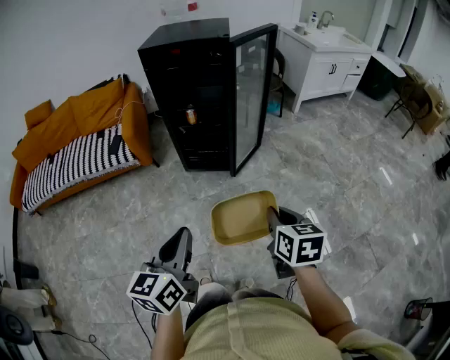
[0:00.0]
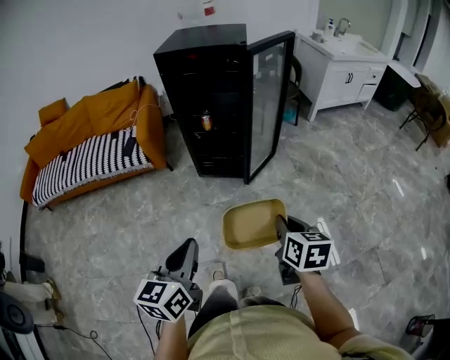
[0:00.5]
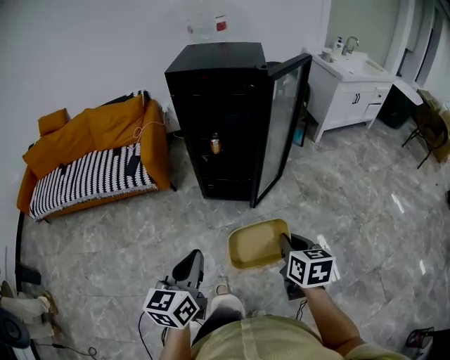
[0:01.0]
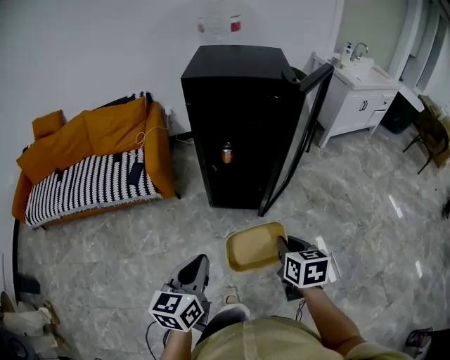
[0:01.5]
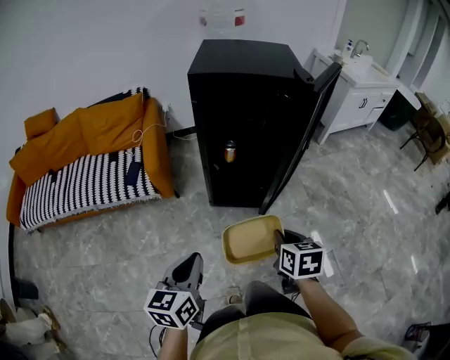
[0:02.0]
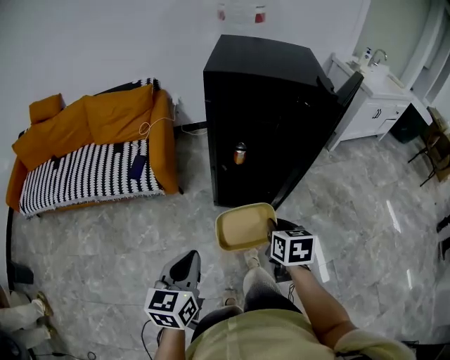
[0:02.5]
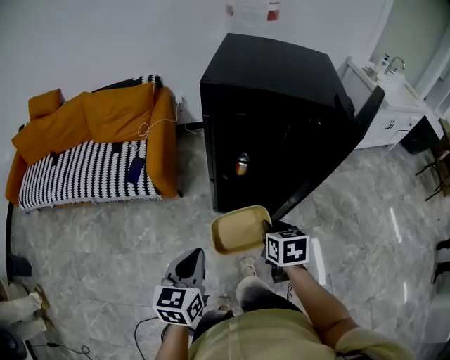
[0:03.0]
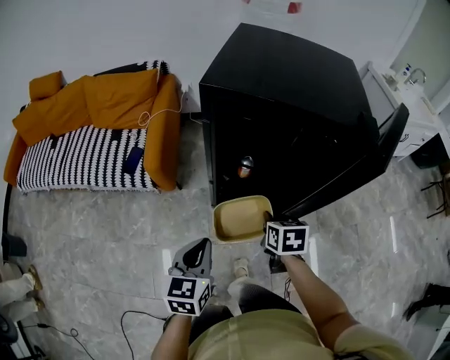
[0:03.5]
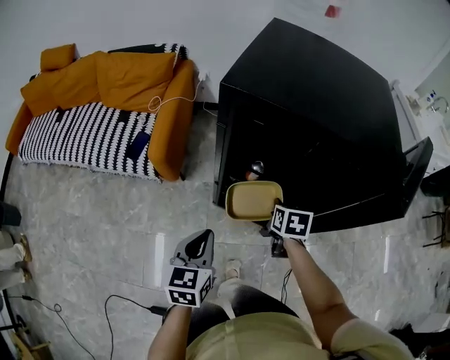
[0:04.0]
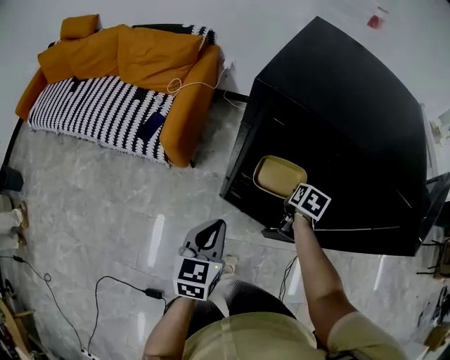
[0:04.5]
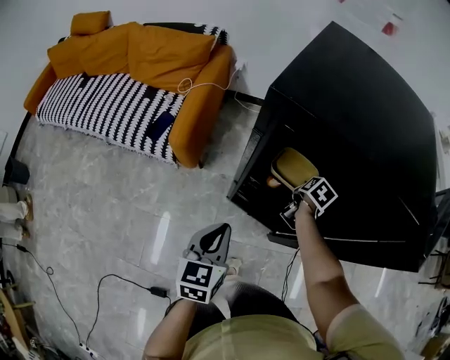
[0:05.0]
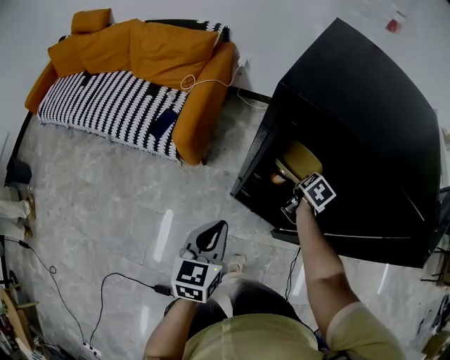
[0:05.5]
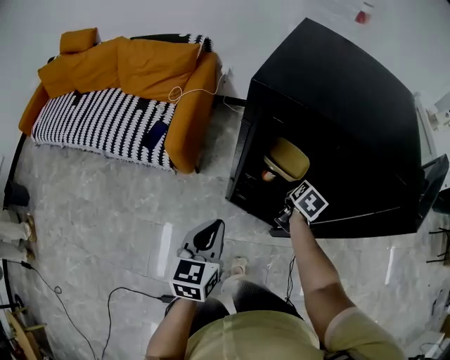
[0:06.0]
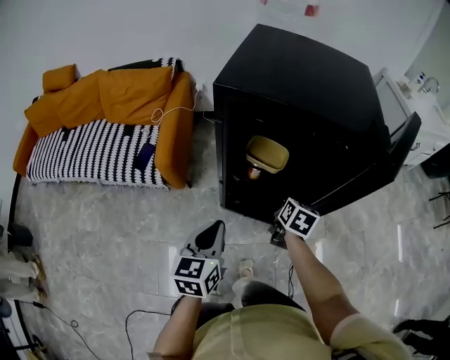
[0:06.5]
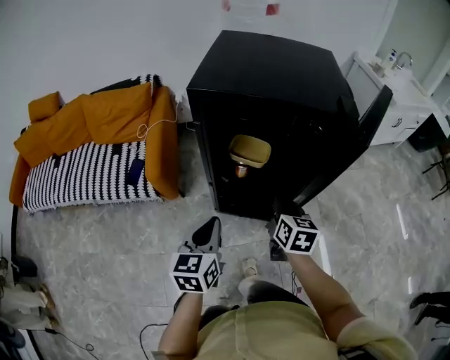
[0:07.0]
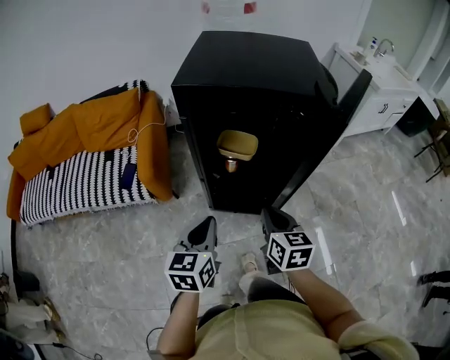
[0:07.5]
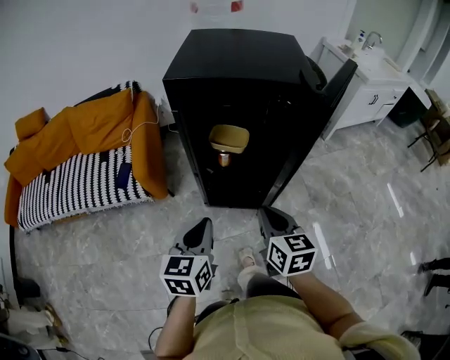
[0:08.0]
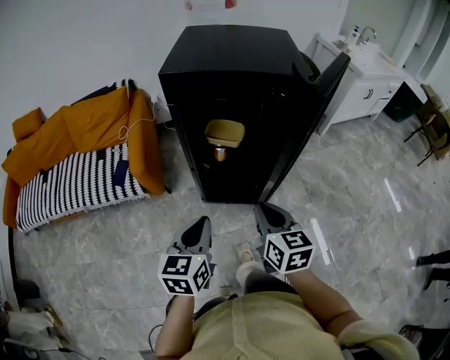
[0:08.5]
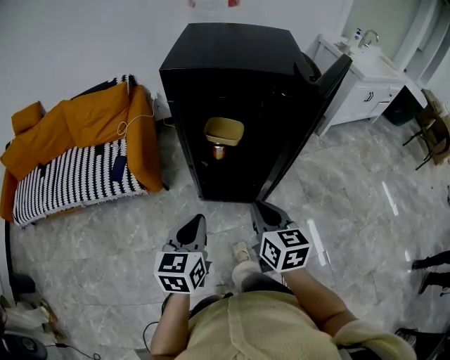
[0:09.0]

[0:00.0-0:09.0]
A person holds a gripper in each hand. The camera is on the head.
0:00.0 to 0:02.0: The two grippers go roughly 25 cm forward and to the left.
0:02.0 to 0:04.5: The right gripper travels forward by roughly 40 cm; the left gripper travels forward by approximately 30 cm.
0:04.5 to 0:07.0: The right gripper moves backward and upward, some 20 cm, and swivels roughly 30 degrees. The left gripper is displaced upward by about 5 cm.
0:07.0 to 0:09.0: The right gripper goes about 15 cm backward. The left gripper goes approximately 10 cm backward.

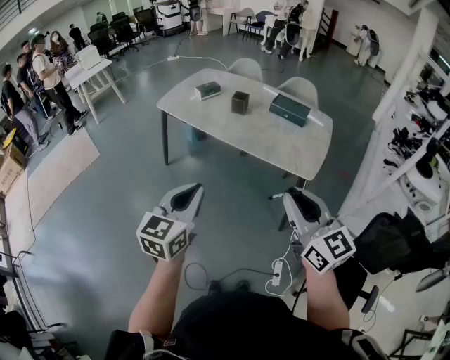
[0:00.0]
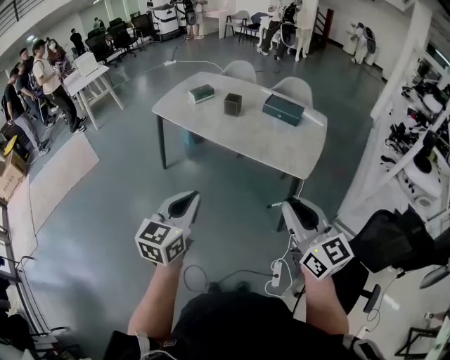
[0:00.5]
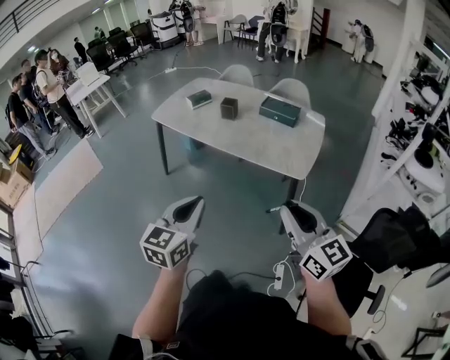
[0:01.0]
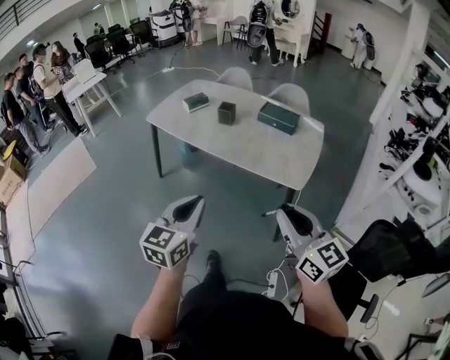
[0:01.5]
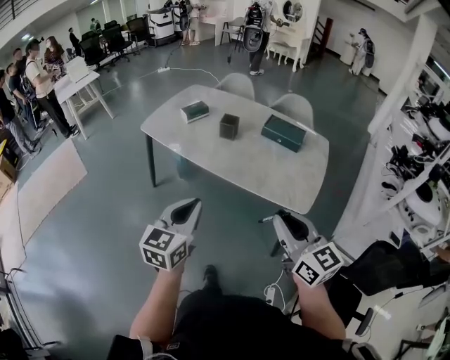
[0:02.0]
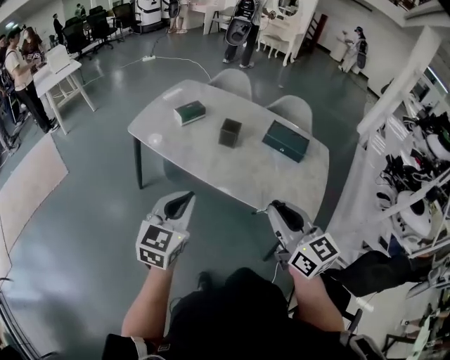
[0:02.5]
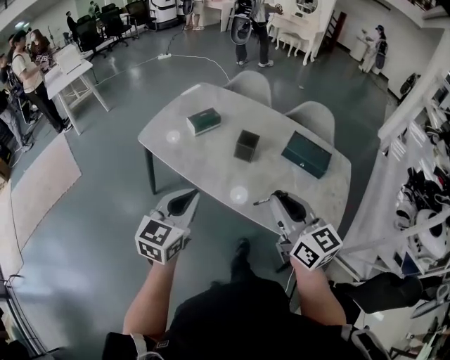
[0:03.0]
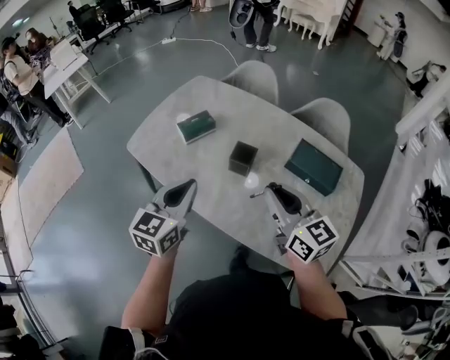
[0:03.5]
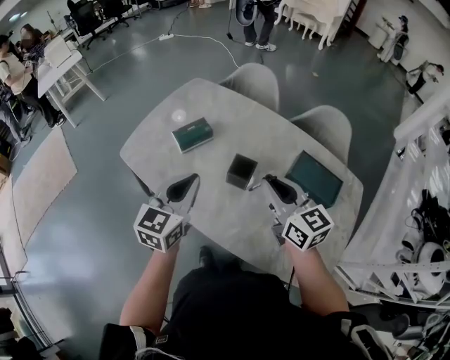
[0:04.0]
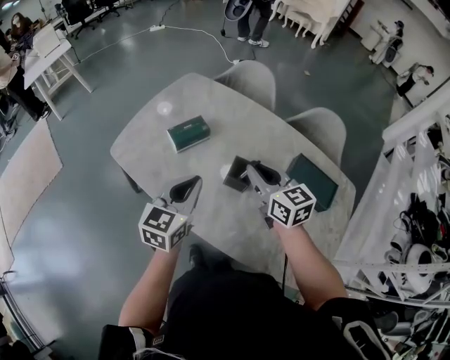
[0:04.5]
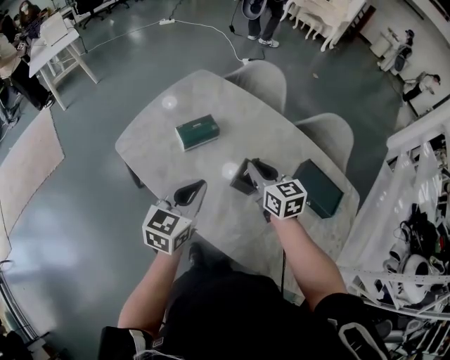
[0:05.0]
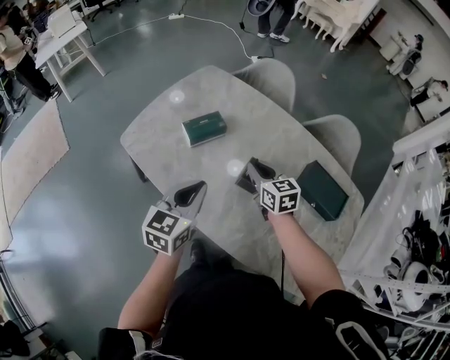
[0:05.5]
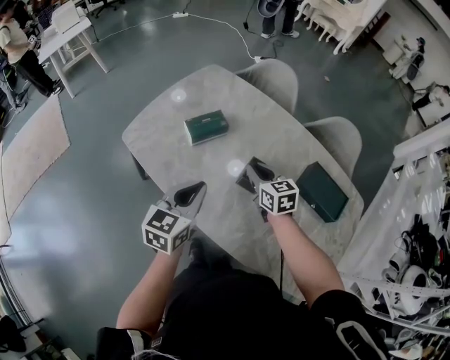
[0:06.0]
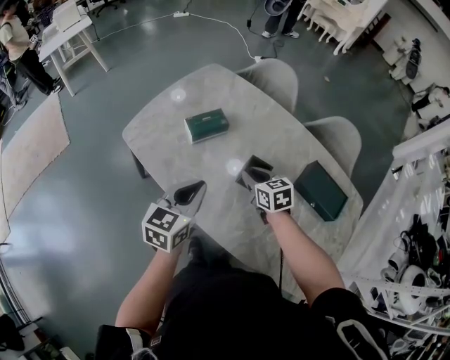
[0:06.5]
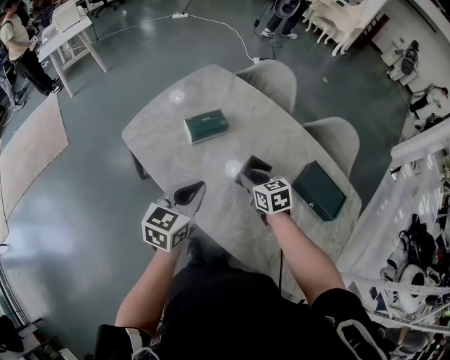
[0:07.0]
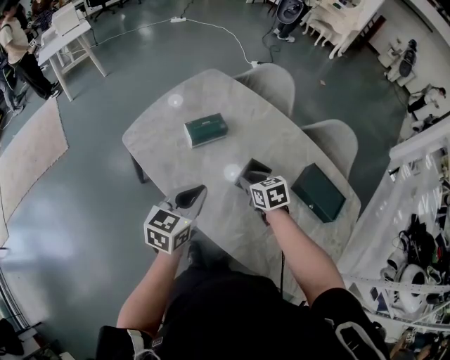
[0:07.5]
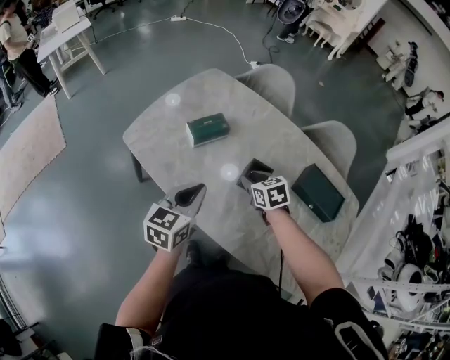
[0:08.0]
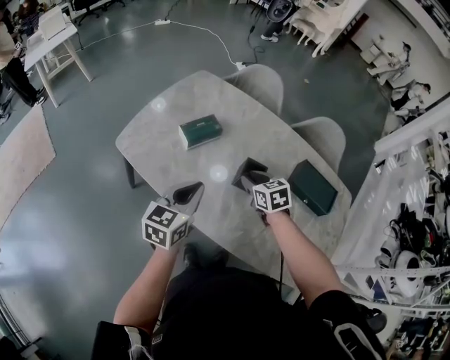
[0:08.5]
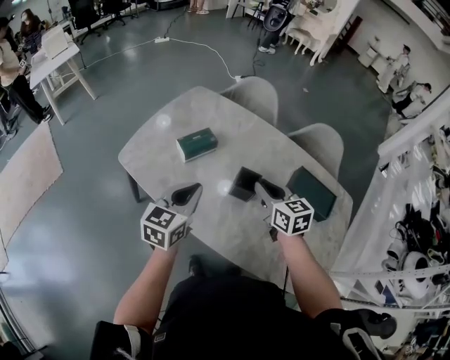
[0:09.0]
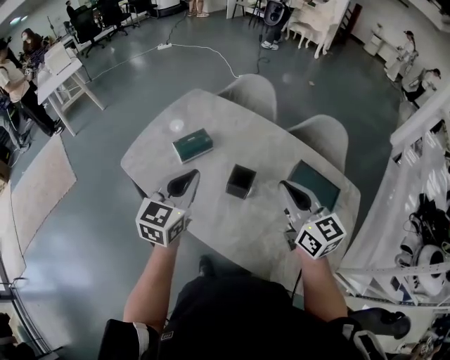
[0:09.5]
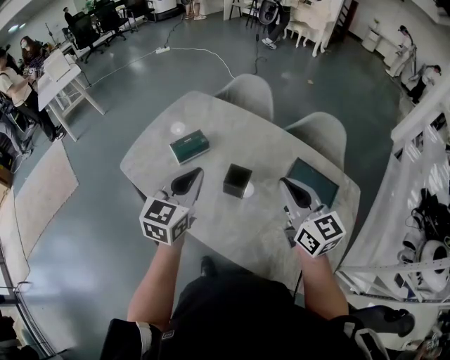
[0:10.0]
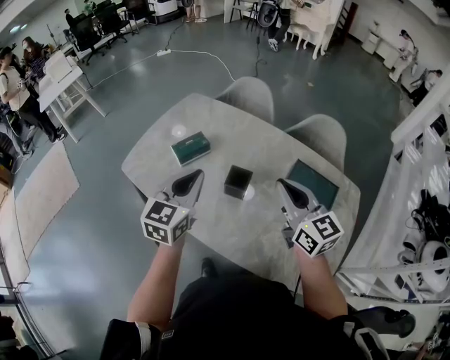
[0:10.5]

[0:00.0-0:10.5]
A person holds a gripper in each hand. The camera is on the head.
0:00.0 to 0:02.0: The grippers both shift forward by some 15 cm.
0:02.0 to 0:04.0: The two grippers travel together, forward, approximately 60 cm.
0:04.0 to 0:06.5: The left gripper goes about 10 cm downward, while the right gripper shifts some 25 cm downward, forward and to the left, and rotates some 30 degrees.
0:06.5 to 0:08.5: The grippers move only a little.
0:08.5 to 0:10.5: The right gripper heads upward, to the right and backward, covering about 30 cm, points its fingers approximately 40 degrees further upward, and closes its fingers. Meanwhile the left gripper shifts approximately 15 cm upward and to the right.

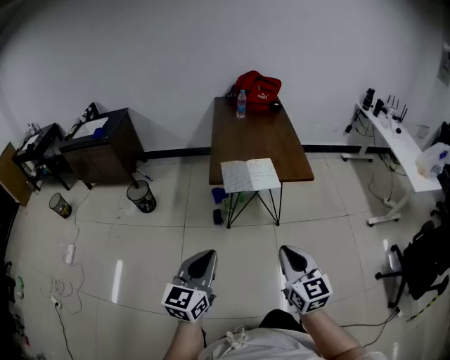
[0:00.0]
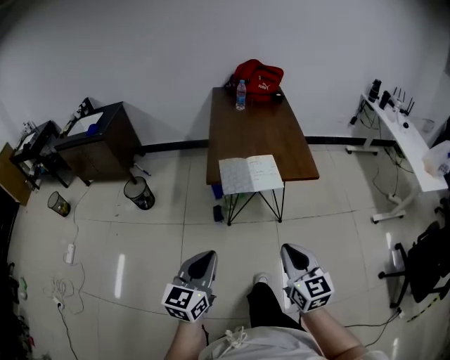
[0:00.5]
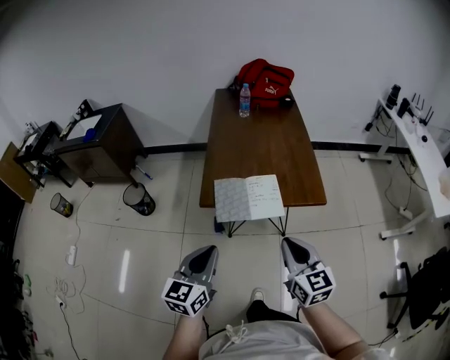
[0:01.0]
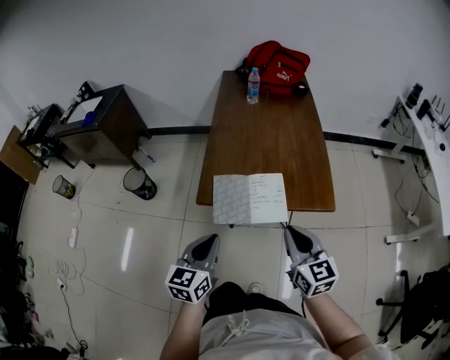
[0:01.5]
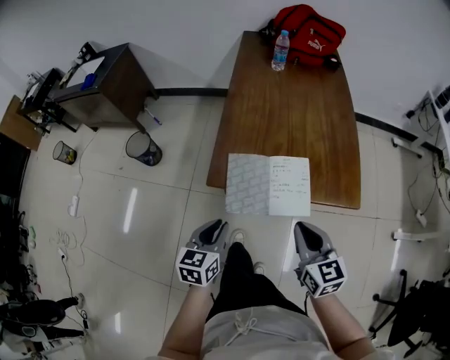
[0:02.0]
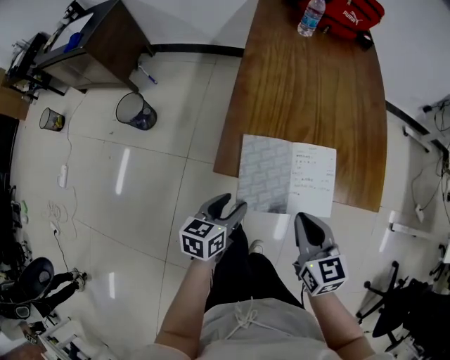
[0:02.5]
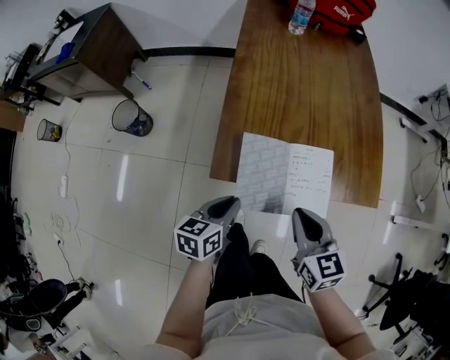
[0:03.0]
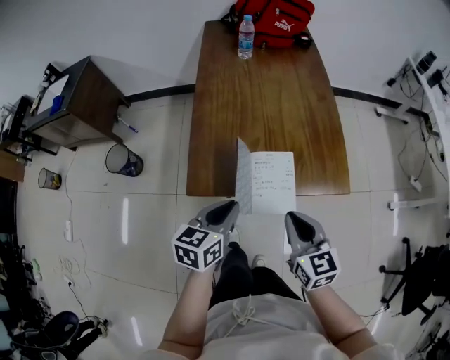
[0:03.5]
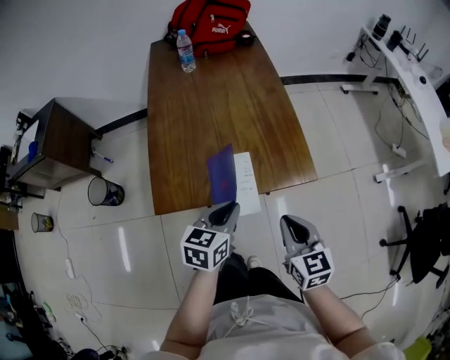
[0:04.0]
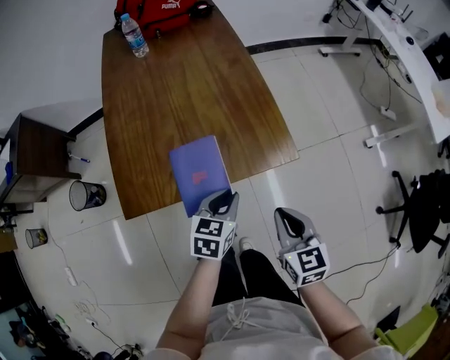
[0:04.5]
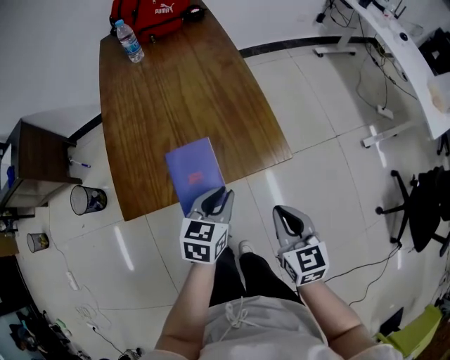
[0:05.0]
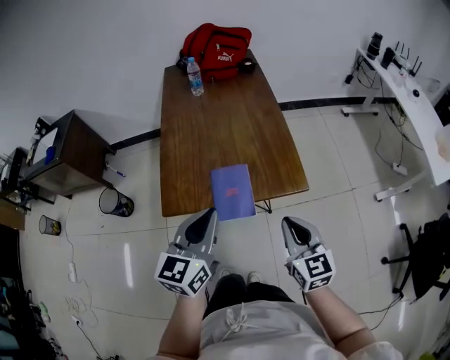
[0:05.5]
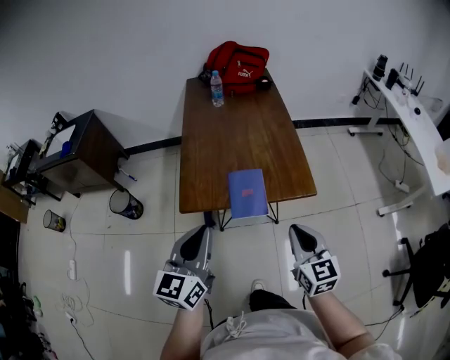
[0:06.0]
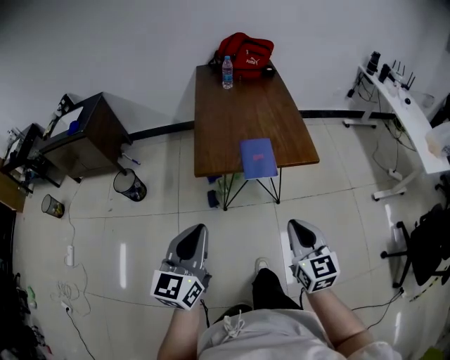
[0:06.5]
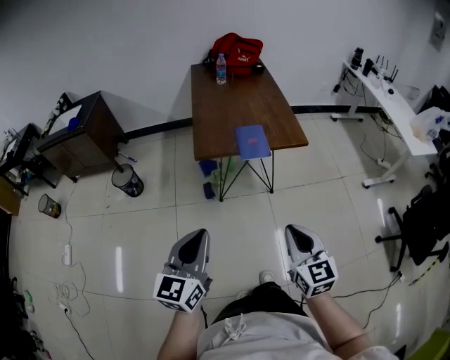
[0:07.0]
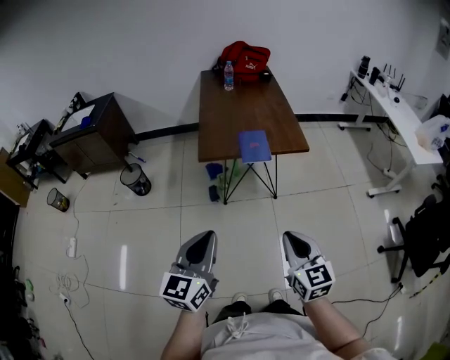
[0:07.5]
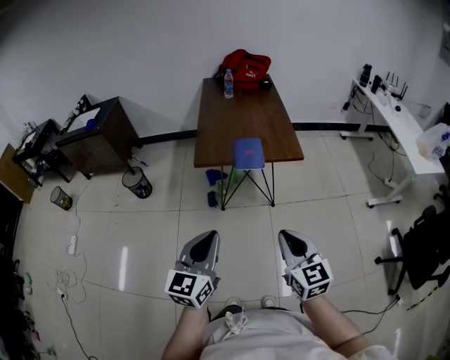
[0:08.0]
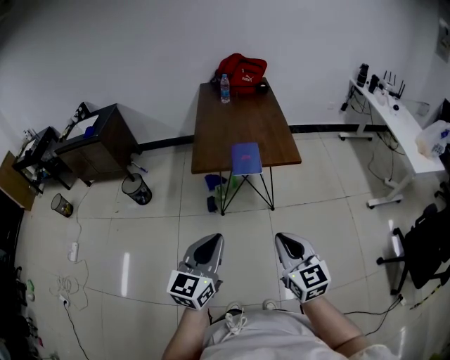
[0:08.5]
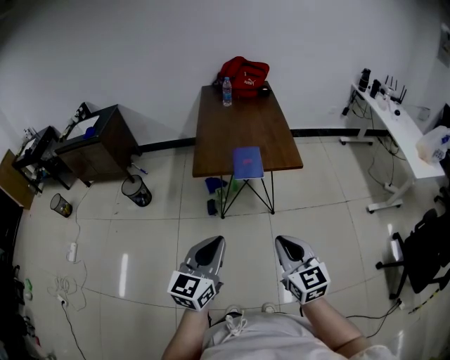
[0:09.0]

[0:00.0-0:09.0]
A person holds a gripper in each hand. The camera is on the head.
0:00.0 to 0:02.0: The right gripper is displaced forward by roughly 40 cm; the left gripper moves forward and downward, roughly 40 cm, and rotates approximately 30 degrees.
0:02.0 to 0:04.5: The left gripper swings up and down, roughly 10 cm each way, with 2 reversals, swivels about 30 degrees, and opens, then closes once more; the right gripper moves up and down over roughly 5 cm, changing direction 2 times, and changes its angle by roughly 30 degrees.
0:04.5 to 0:07.0: The left gripper shifts about 60 cm backward, upward and to the left, and points its fingers approximately 40 degrees further upward, while the right gripper is displaced backward and upward by about 40 cm, and rotates about 20 degrees.
0:07.0 to 0:09.0: The left gripper is displaced to the right by some 10 cm. The right gripper travels to the right by roughly 5 cm.
